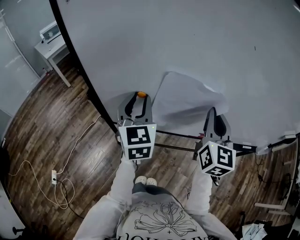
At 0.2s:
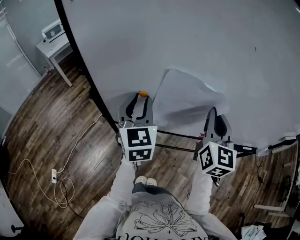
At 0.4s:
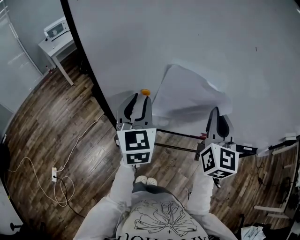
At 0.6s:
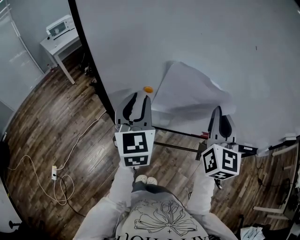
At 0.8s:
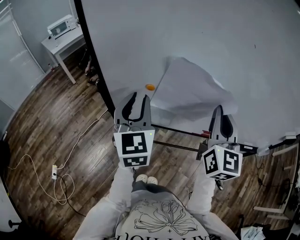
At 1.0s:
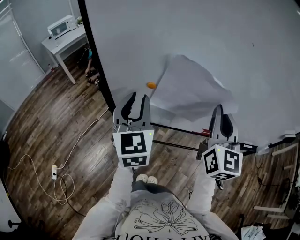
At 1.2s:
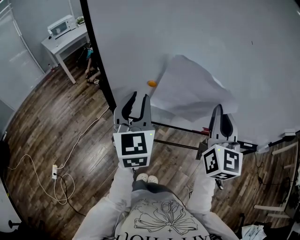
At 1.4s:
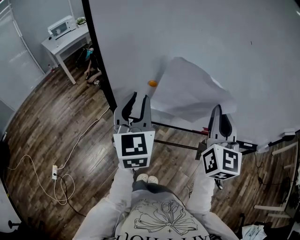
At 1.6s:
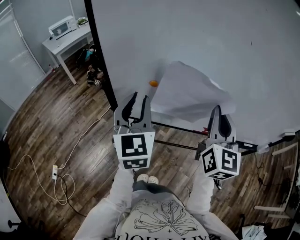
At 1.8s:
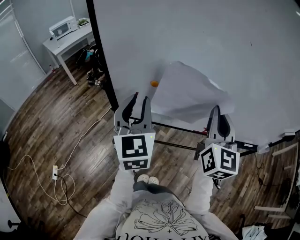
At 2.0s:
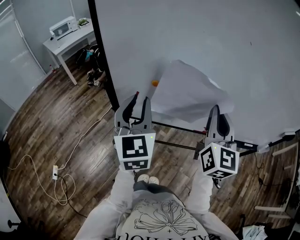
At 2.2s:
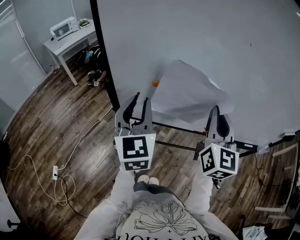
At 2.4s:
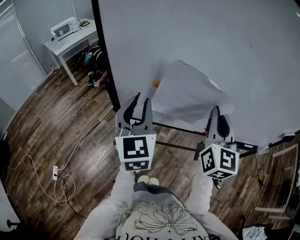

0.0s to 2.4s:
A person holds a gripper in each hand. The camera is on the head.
0.0s to 1.2s: Both grippers move backward, about 5 cm.
1.2s to 2.4s: The grippers move only a little.

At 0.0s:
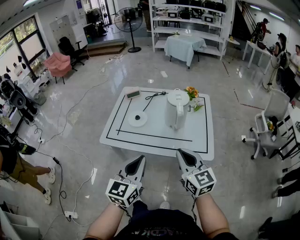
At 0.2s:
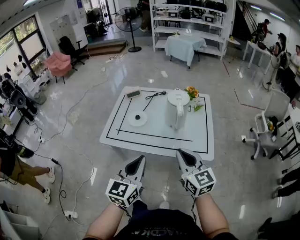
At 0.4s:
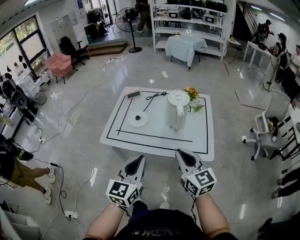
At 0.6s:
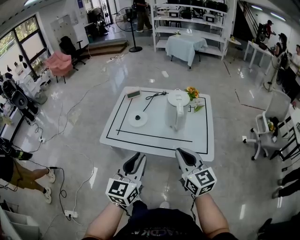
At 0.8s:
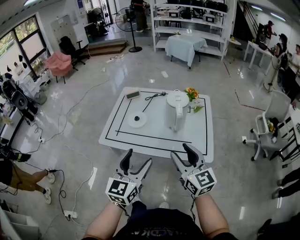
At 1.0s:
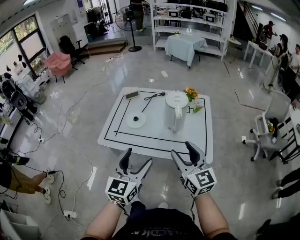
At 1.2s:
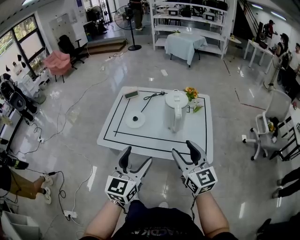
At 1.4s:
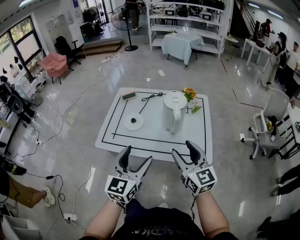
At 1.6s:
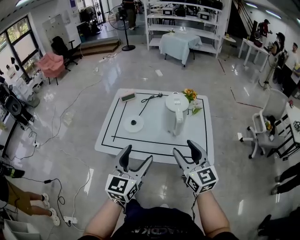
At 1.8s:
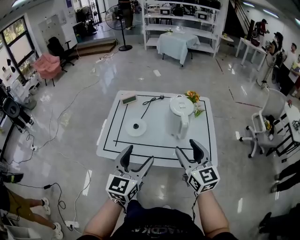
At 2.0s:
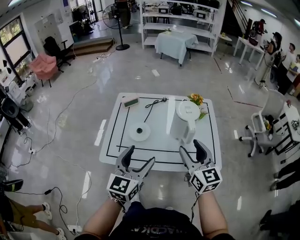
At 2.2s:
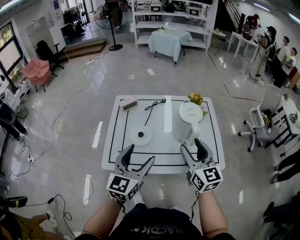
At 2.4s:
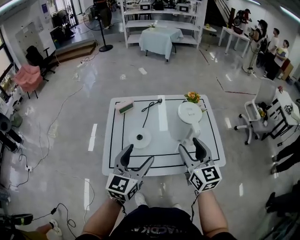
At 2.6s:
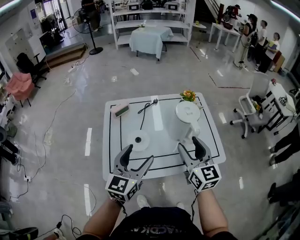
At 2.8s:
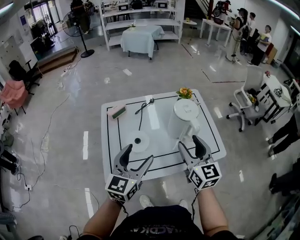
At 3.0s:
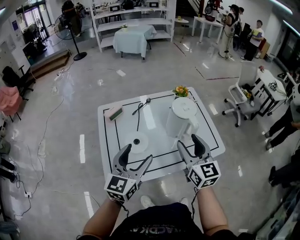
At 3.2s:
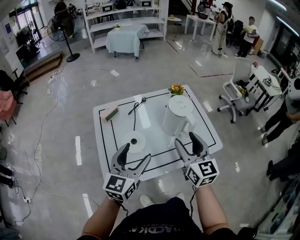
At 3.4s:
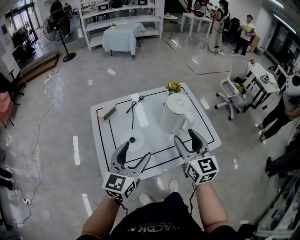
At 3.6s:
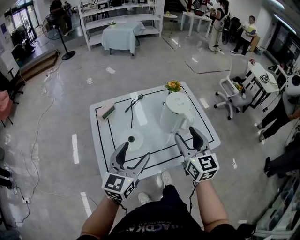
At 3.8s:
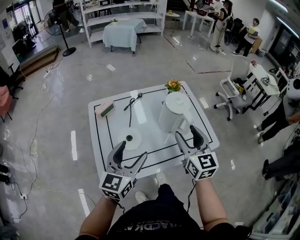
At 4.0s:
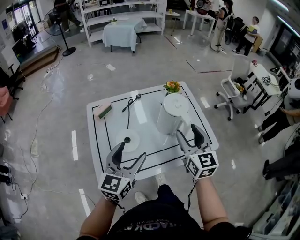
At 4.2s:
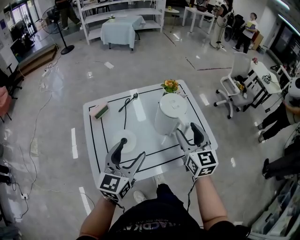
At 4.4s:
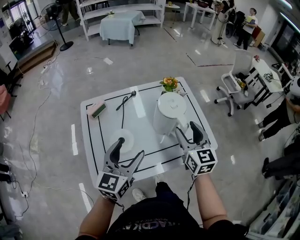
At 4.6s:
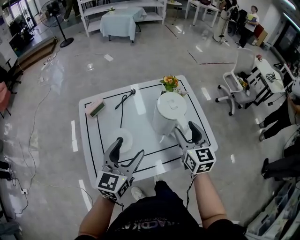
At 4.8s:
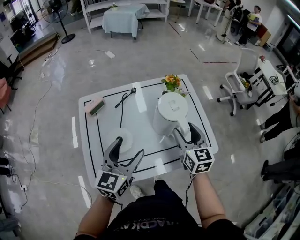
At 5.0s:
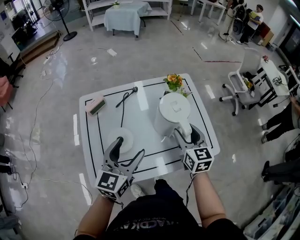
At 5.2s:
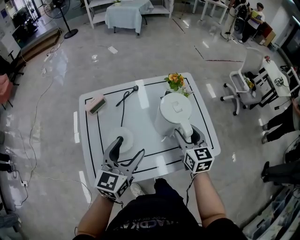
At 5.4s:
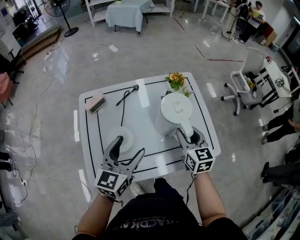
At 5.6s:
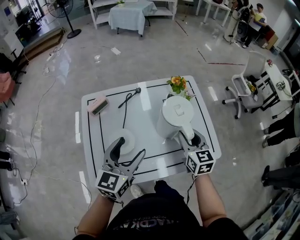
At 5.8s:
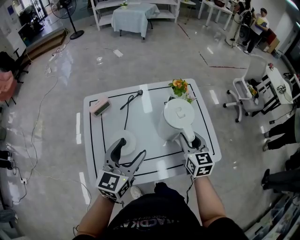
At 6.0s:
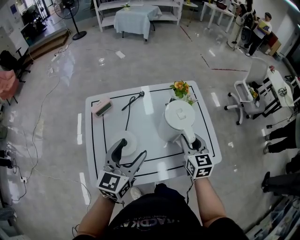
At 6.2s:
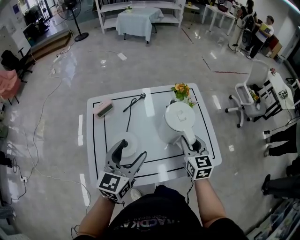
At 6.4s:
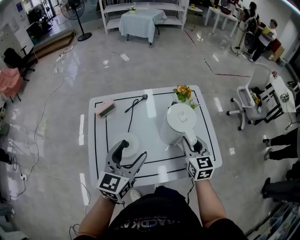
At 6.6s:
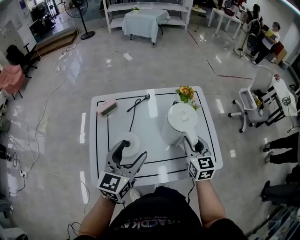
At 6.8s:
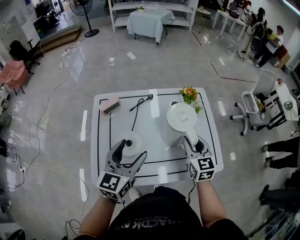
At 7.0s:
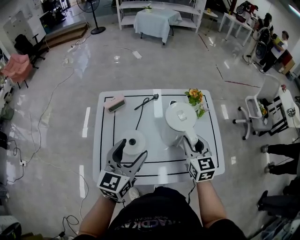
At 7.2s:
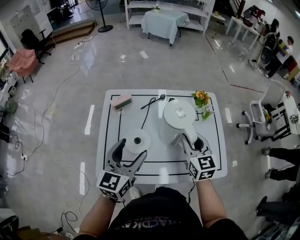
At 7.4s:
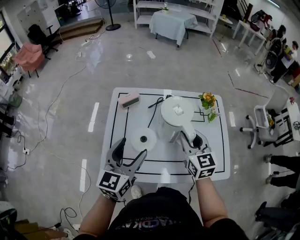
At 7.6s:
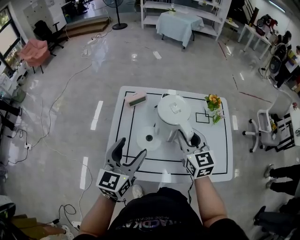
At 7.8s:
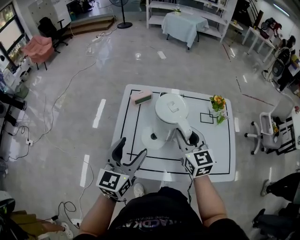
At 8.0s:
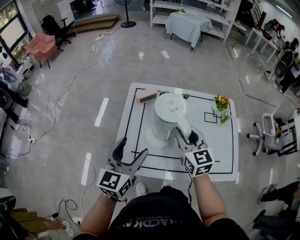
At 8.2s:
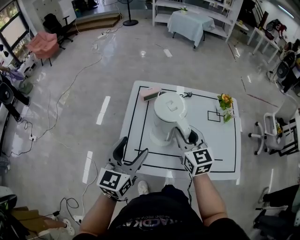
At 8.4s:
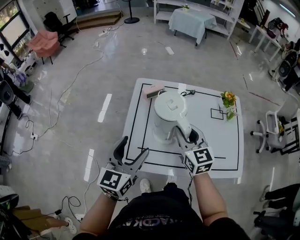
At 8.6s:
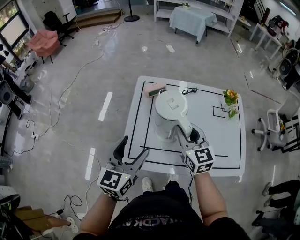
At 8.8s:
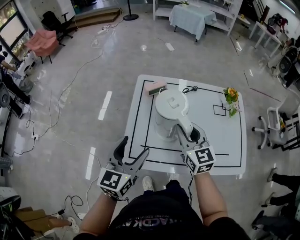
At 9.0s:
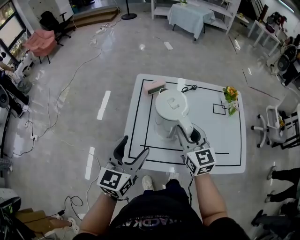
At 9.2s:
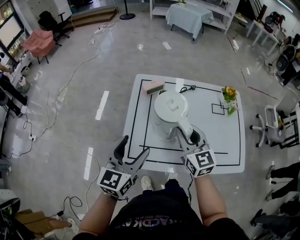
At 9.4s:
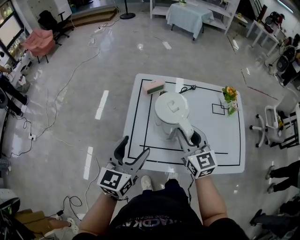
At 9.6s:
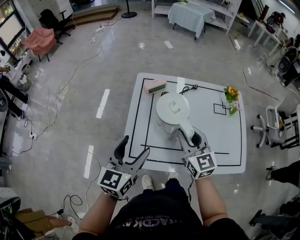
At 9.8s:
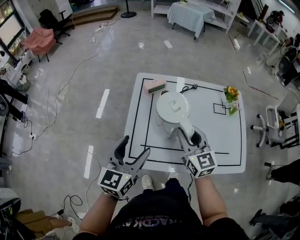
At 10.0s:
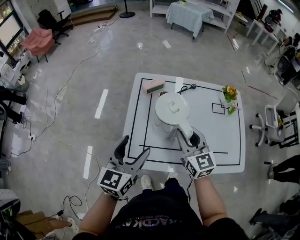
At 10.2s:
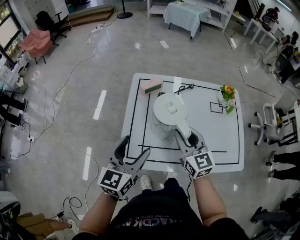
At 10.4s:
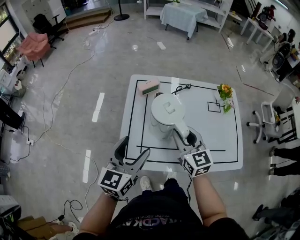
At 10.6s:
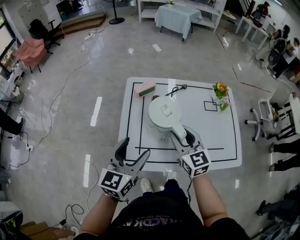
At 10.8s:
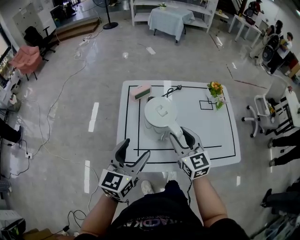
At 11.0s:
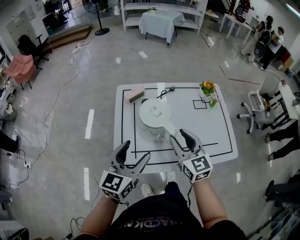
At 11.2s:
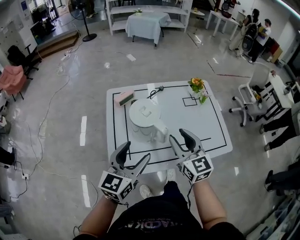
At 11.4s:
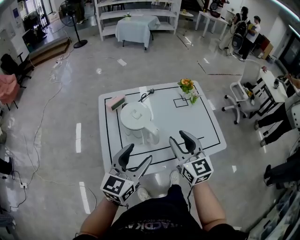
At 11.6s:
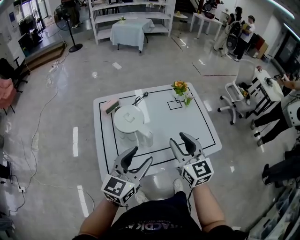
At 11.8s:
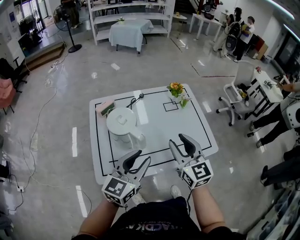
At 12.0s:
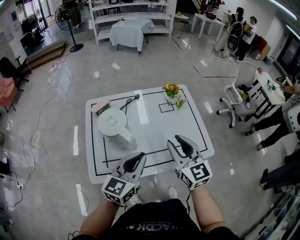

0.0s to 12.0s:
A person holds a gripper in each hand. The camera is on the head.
0.0s to 1.6s: Both grippers move forward, some 5 cm. The left gripper opens its fingers. The right gripper opens its fingers.
1.6s to 3.0s: The right gripper ends up roughly 15 cm from where it was, and turns by approximately 30 degrees, while the left gripper changes place by approximately 20 cm, and swivels some 30 degrees.
3.0s to 4.4s: The right gripper is displaced forward and to the right by approximately 10 cm, while the left gripper is displaced forward by approximately 5 cm.
4.4s to 6.0s: The right gripper goes roughly 10 cm downward, and closes up.
6.0s to 7.6s: Both grippers travel together to the left, approximately 15 cm. The right gripper rotates about 20 degrees.
7.6s to 9.0s: The grippers both shift to the left by roughly 10 cm.
9.0s to 10.4s: The grippers make only small movements.
10.4s to 12.0s: The left gripper travels to the right by about 20 cm, swivels some 20 degrees, and closes. Meanwhile the right gripper travels to the right and upward by about 20 cm.

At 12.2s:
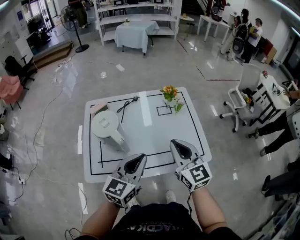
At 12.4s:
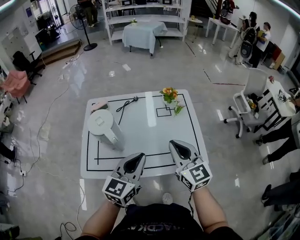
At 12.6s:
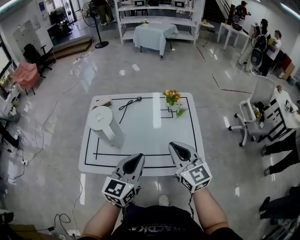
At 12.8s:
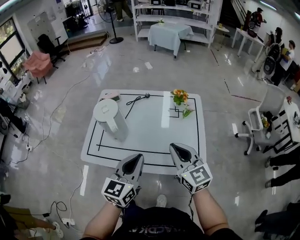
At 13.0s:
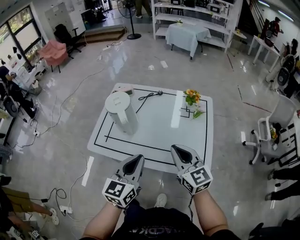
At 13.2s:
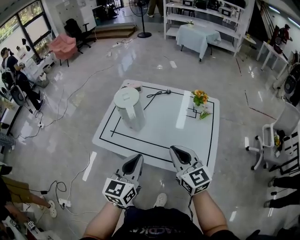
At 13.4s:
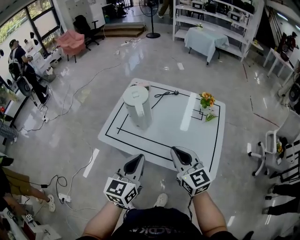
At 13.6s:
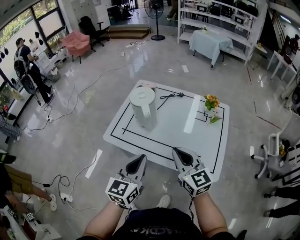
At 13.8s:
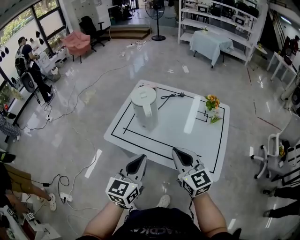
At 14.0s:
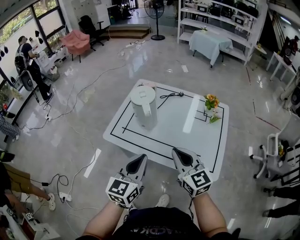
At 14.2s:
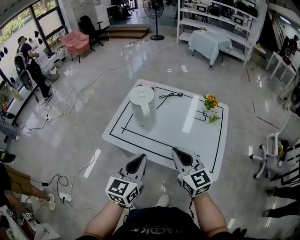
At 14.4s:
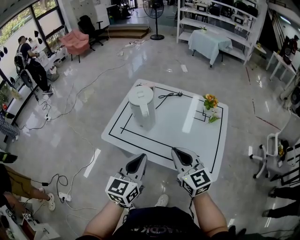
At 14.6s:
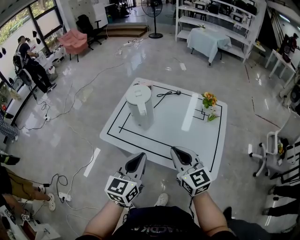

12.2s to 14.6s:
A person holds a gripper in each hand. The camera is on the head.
12.2s to 13.4s: The right gripper moves roughly 5 cm, and changes its angle by about 30 degrees. Meanwhile the left gripper shifts by approximately 10 cm, and rotates some 40 degrees.
13.4s to 14.6s: There are only small adjustments of the grippers.

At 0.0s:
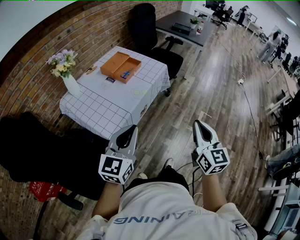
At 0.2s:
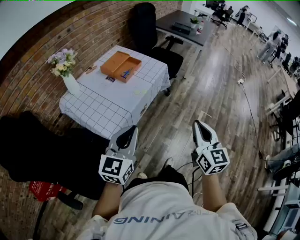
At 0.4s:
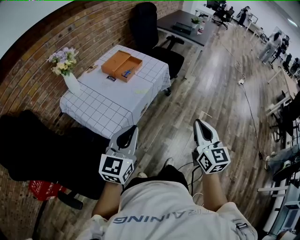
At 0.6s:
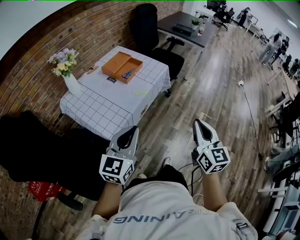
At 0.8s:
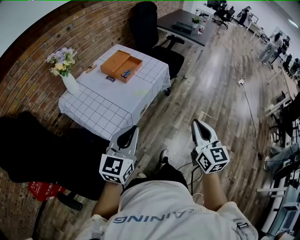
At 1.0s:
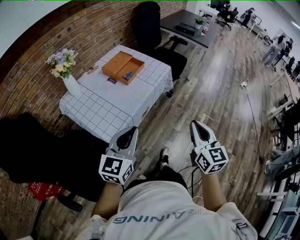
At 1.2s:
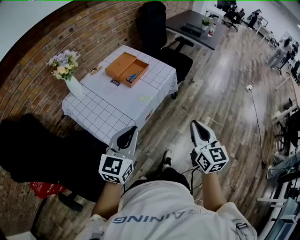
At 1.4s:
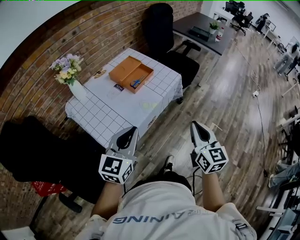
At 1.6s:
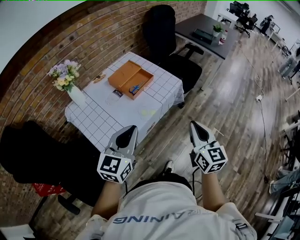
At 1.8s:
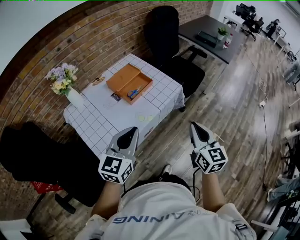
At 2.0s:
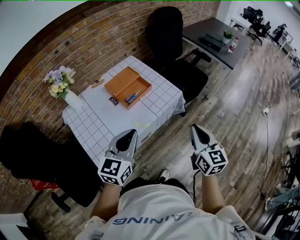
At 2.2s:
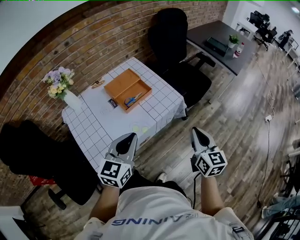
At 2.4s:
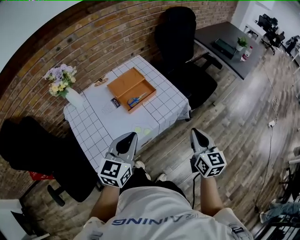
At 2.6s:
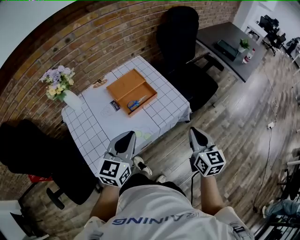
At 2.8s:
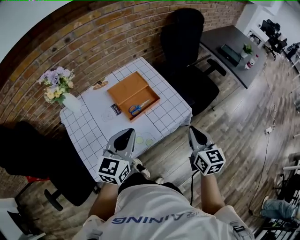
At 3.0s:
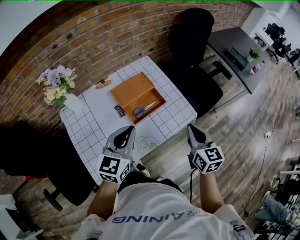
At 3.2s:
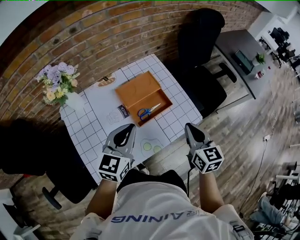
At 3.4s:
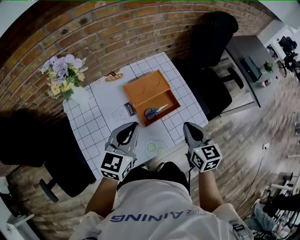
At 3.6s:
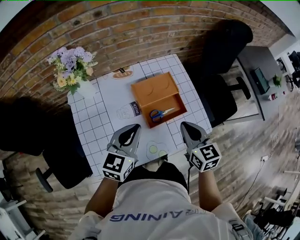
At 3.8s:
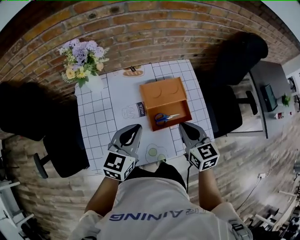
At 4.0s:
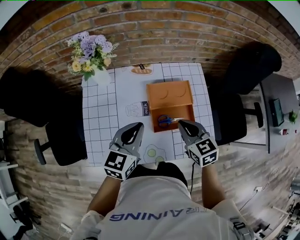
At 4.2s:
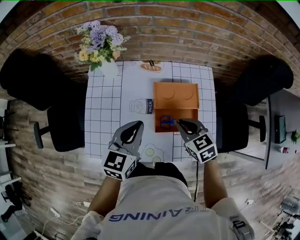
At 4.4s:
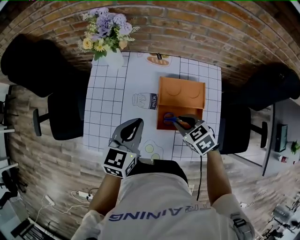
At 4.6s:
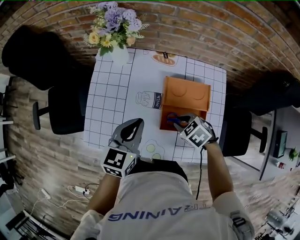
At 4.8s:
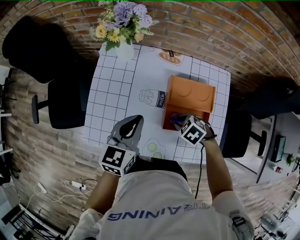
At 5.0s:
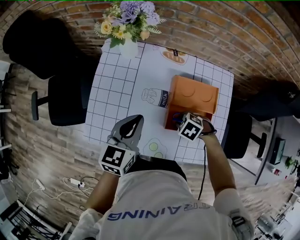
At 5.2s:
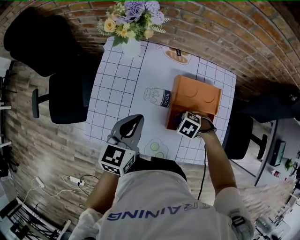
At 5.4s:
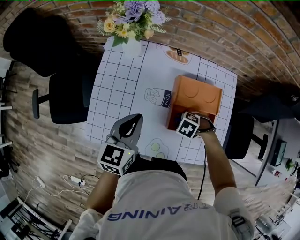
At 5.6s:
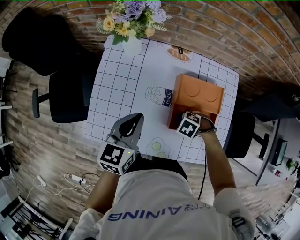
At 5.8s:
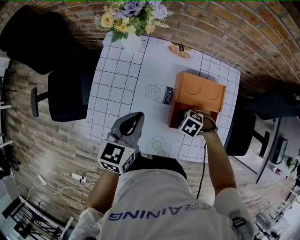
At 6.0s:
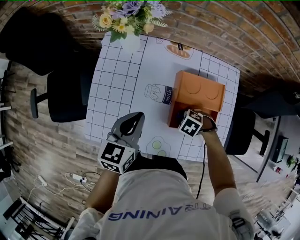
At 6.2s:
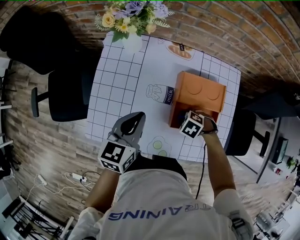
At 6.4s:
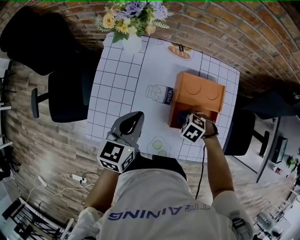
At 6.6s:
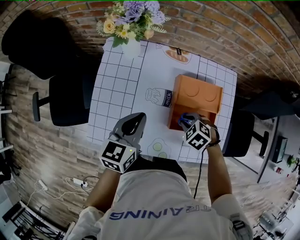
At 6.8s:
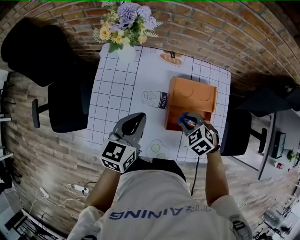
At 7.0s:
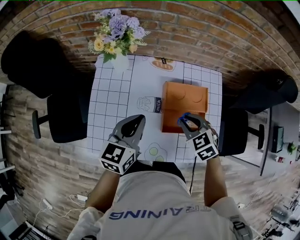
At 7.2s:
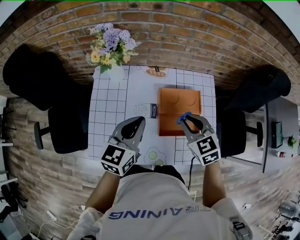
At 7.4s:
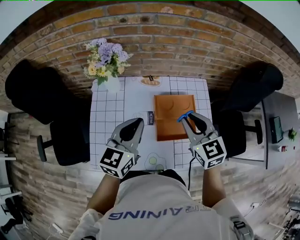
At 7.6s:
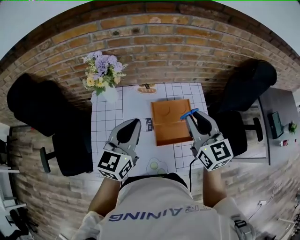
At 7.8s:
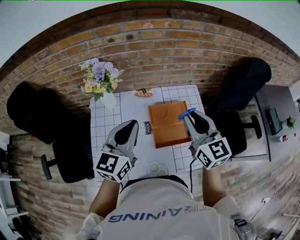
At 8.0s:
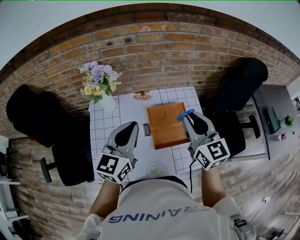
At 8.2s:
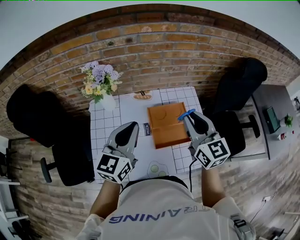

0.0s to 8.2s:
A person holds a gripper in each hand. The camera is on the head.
0.0s to 1.6s: The two grippers go some 20 cm forward.
1.6s to 3.2s: The two grippers go roughly 30 cm forward. The right gripper changes its angle by some 20 degrees.
3.2s to 5.0s: The left gripper shifts by approximately 15 cm, and rotates some 40 degrees. The right gripper heads downward, covering approximately 25 cm, tips its fingers downward by some 60 degrees, and opens.
5.0s to 6.6s: The grippers make only small movements.
6.6s to 8.2s: The right gripper moves upward, roughly 35 cm, and points its fingers some 70 degrees further upward. The left gripper shifts roughly 20 cm upward, and rotates about 30 degrees.
